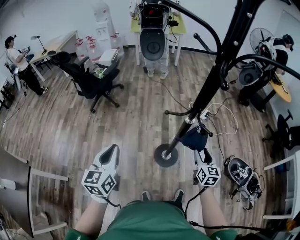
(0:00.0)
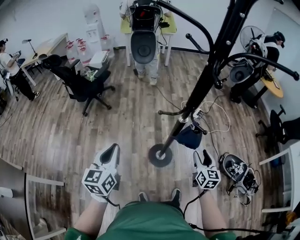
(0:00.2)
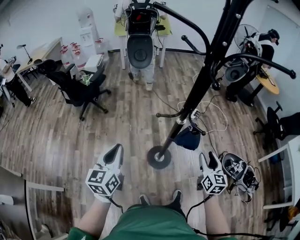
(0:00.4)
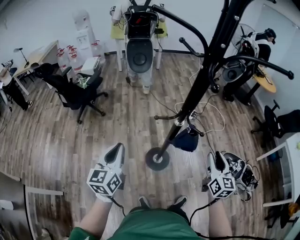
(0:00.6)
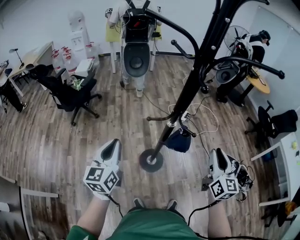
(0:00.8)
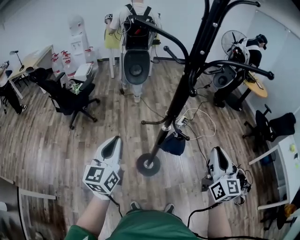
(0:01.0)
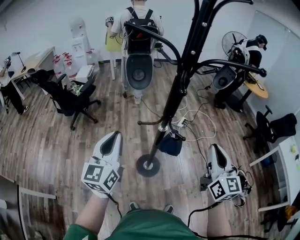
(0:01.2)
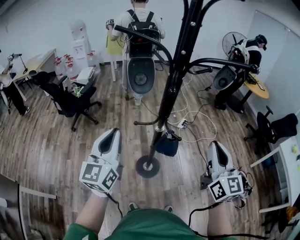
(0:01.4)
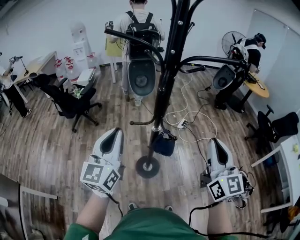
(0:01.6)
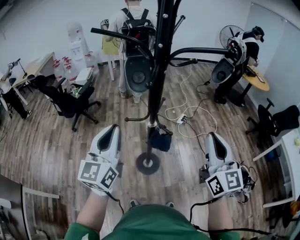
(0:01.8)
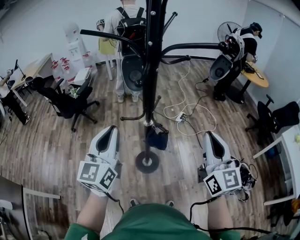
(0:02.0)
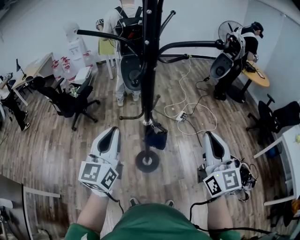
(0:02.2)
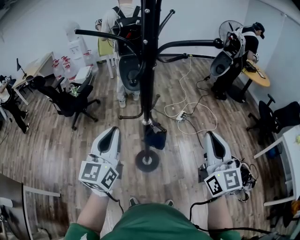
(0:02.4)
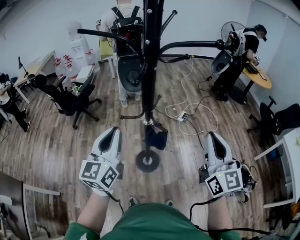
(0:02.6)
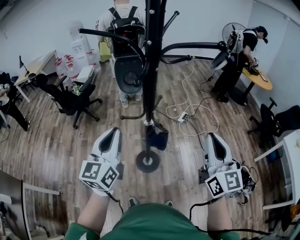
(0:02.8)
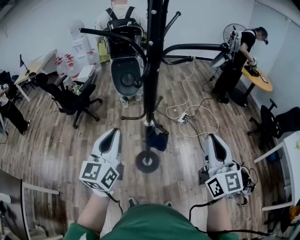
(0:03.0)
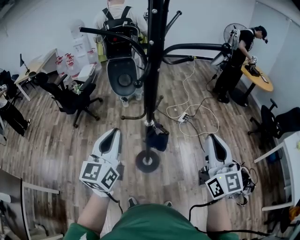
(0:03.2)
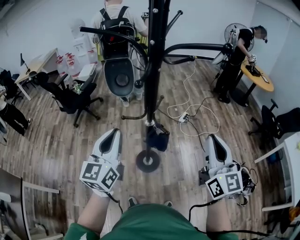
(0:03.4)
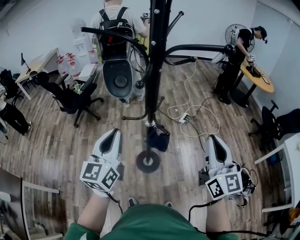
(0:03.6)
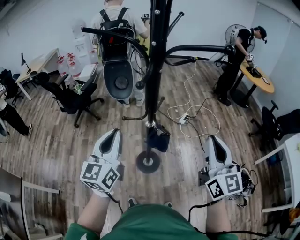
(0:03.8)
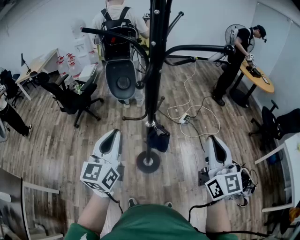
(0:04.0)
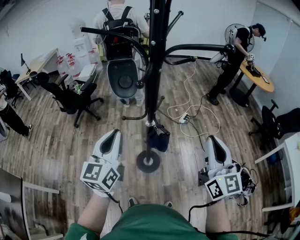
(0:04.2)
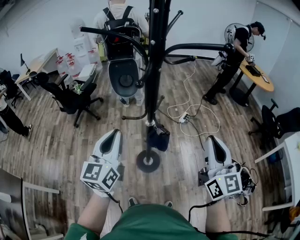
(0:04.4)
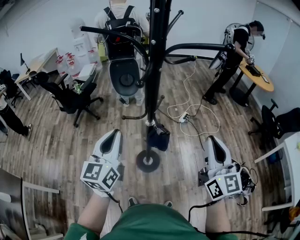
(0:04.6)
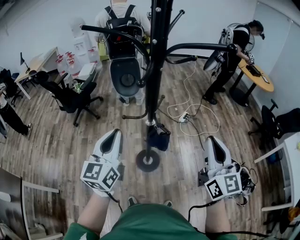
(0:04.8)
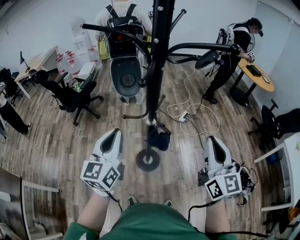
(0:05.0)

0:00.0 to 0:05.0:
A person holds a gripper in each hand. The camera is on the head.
0:00.0 to 0:01.6: The left gripper goes roughly 25 cm to the right and upward, and swivels about 20 degrees, while the right gripper goes approximately 35 cm upward, changes its angle by some 30 degrees, and closes up.
0:01.6 to 0:03.4: The left gripper ends up some 5 cm from where it was.
0:03.4 to 0:05.0: The grippers stay close to where they were, moving slightly.

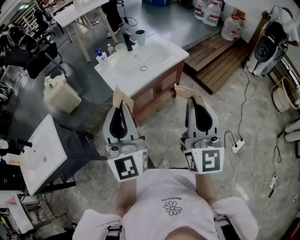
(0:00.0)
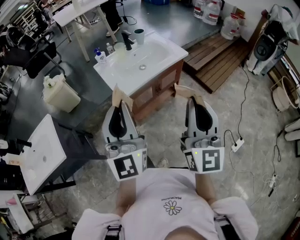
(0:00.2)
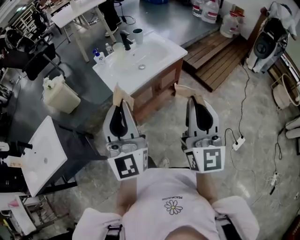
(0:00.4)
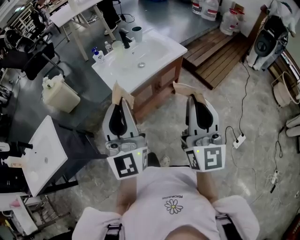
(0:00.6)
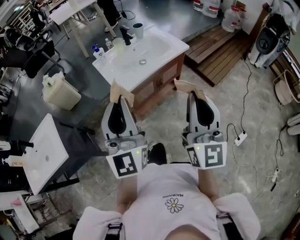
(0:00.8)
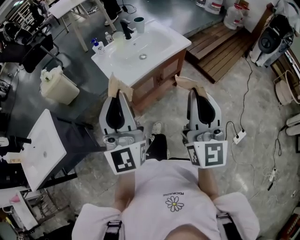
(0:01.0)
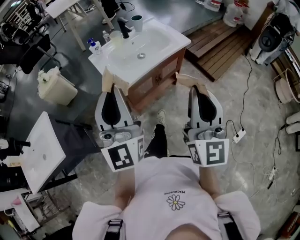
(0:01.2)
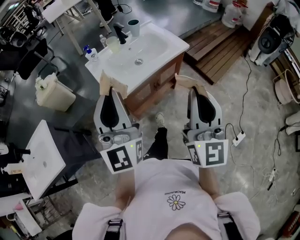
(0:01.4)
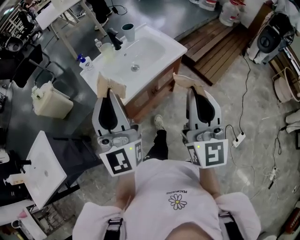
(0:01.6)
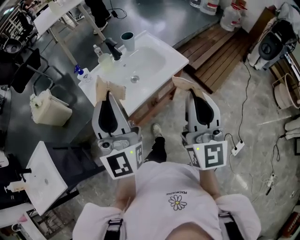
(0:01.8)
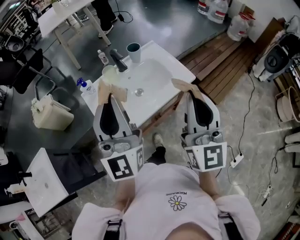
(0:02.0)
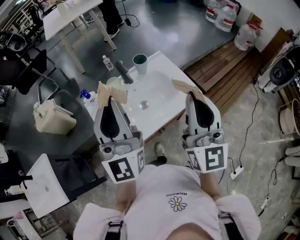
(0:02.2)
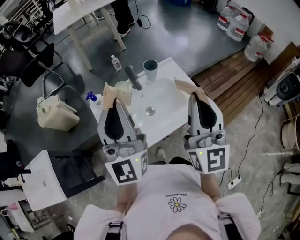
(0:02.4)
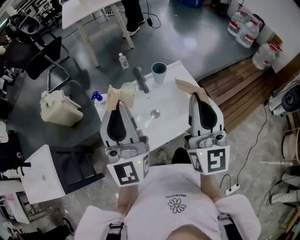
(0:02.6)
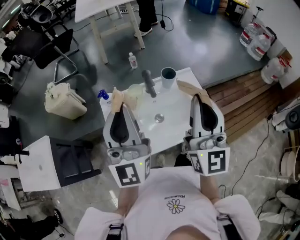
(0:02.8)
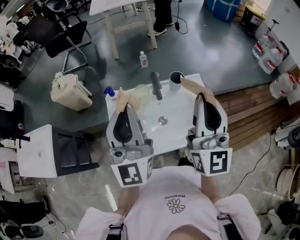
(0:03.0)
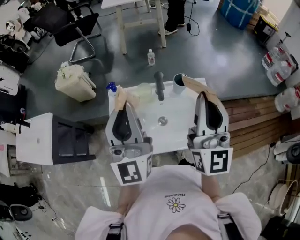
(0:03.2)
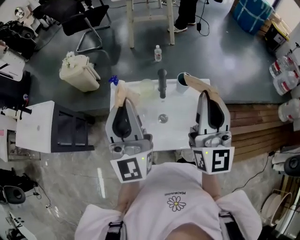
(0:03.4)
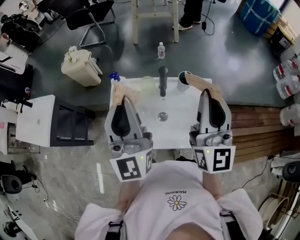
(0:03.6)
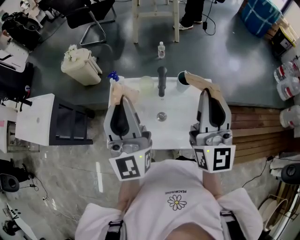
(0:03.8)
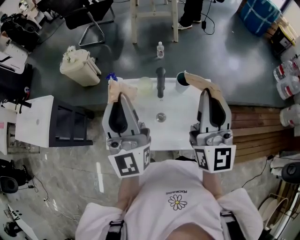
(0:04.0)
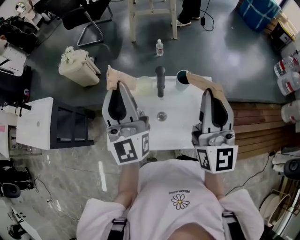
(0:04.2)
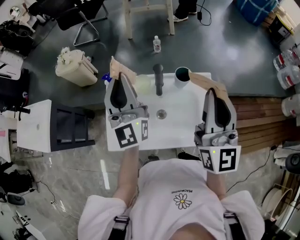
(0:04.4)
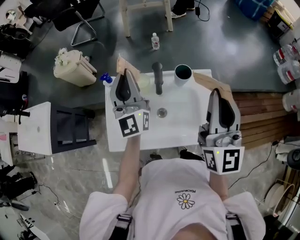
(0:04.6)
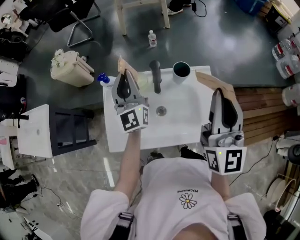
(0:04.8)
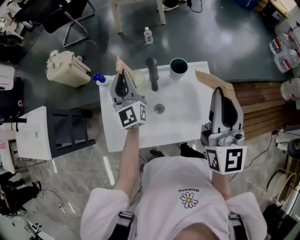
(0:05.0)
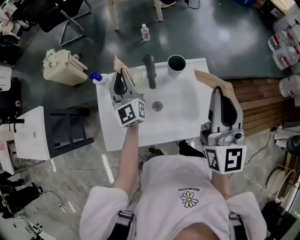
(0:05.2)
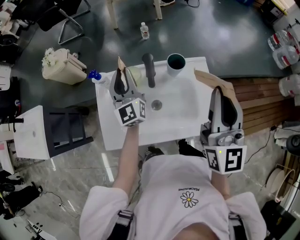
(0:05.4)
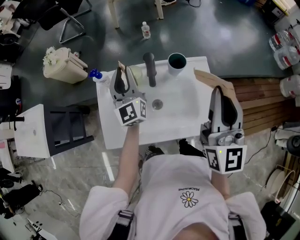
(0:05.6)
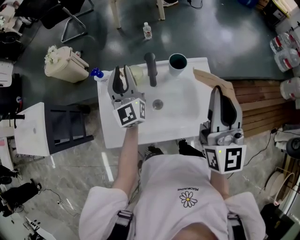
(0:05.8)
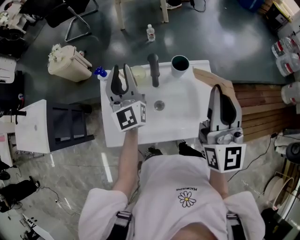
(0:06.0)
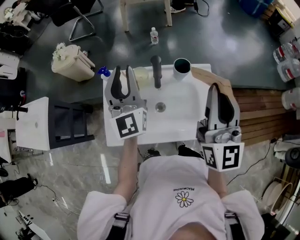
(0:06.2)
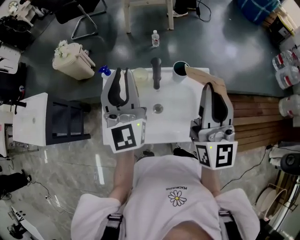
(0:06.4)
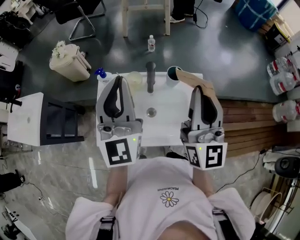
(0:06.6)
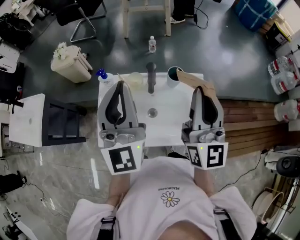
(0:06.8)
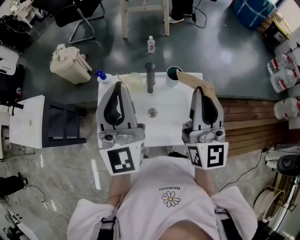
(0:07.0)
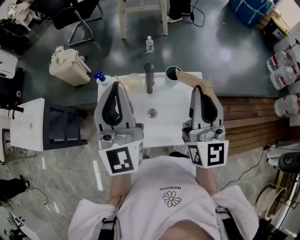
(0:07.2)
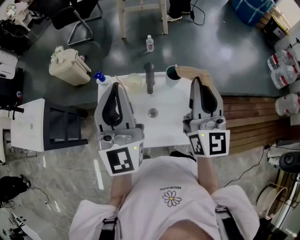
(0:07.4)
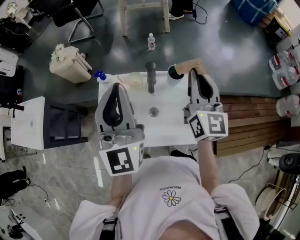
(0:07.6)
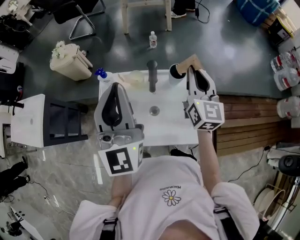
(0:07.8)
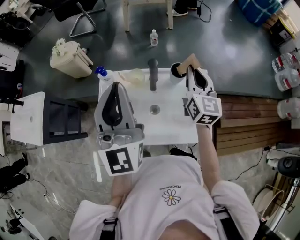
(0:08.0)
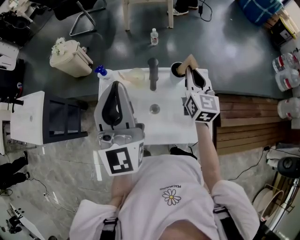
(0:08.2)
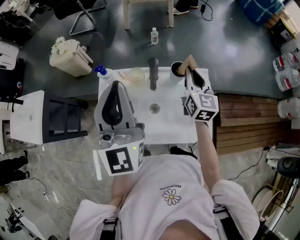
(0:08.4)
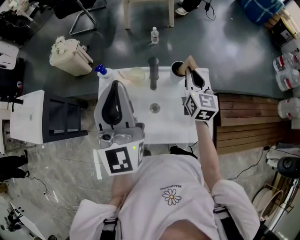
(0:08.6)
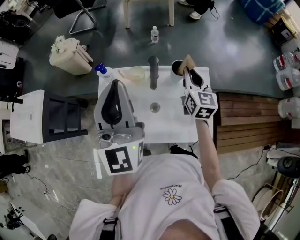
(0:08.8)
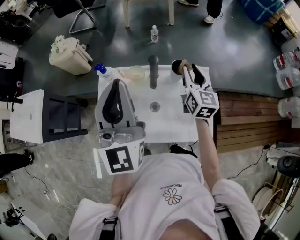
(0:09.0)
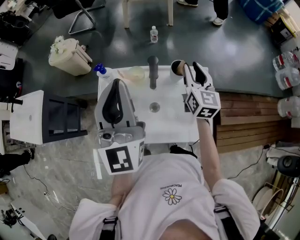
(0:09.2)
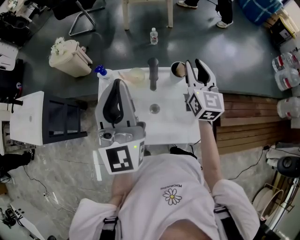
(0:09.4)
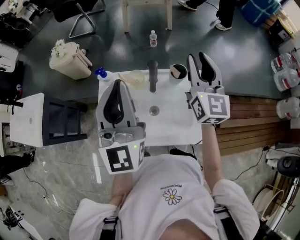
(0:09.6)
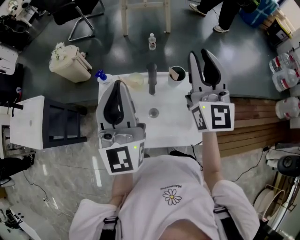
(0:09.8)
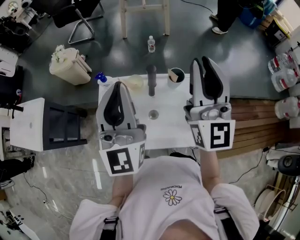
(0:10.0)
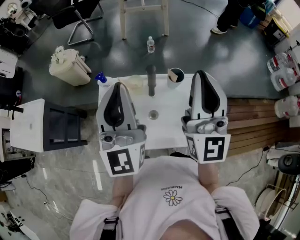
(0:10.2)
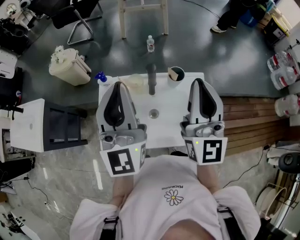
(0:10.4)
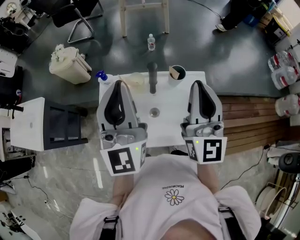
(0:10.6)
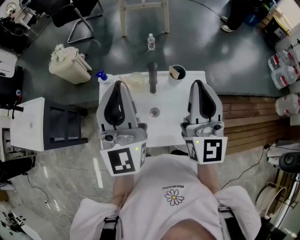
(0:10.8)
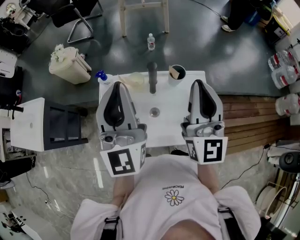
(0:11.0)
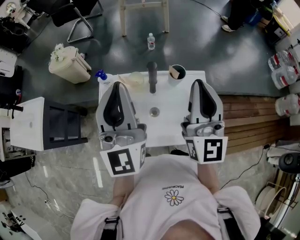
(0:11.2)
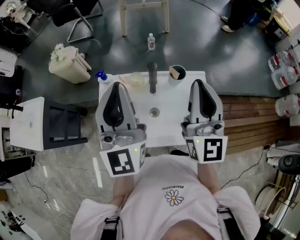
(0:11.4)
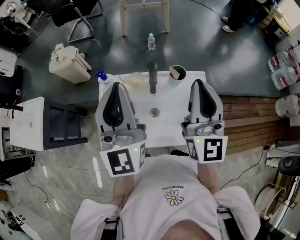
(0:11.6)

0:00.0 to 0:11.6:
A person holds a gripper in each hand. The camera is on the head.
0:00.0 to 0:01.4: The grippers both shift forward by about 10 cm.
0:01.4 to 0:02.8: The grippers both shift forward by approximately 35 cm. The right gripper turns by roughly 20 degrees.
0:02.8 to 0:04.4: The left gripper goes about 10 cm forward; the right gripper goes some 10 cm forward and to the right.
0:04.4 to 0:05.8: The left gripper shifts some 15 cm downward and forward.
0:05.8 to 0:07.2: The left gripper moves upward and backward, approximately 20 cm.
0:07.2 to 0:08.8: The right gripper is displaced downward and forward by about 25 cm, and rotates roughly 30 degrees.
0:08.8 to 0:10.2: The right gripper goes about 25 cm upward and backward, and tips its fingers upward by about 30 degrees.
0:10.2 to 0:11.6: The grippers make only small movements.

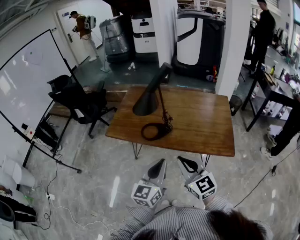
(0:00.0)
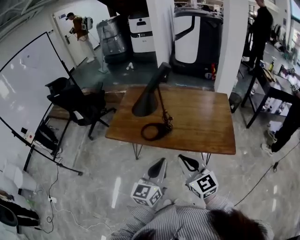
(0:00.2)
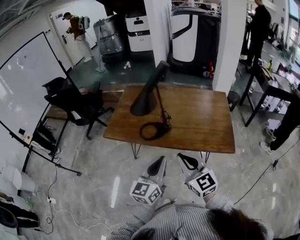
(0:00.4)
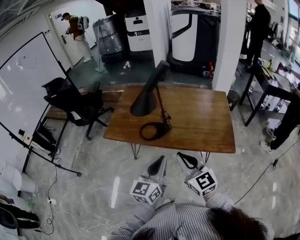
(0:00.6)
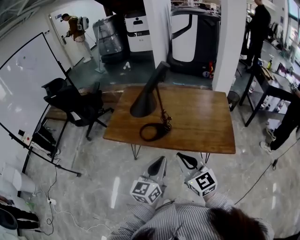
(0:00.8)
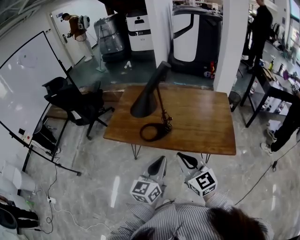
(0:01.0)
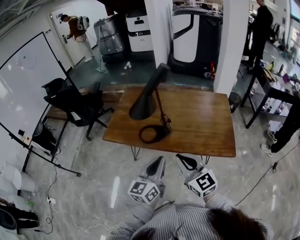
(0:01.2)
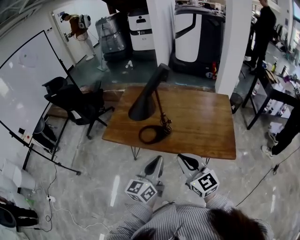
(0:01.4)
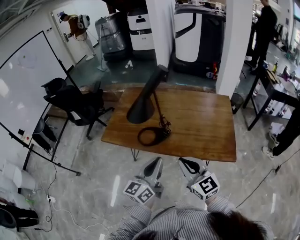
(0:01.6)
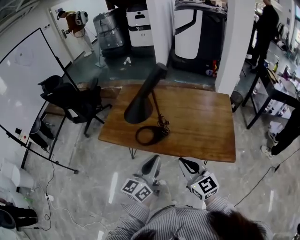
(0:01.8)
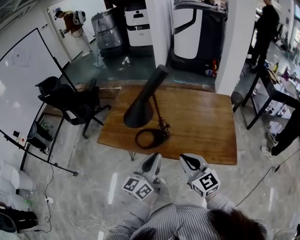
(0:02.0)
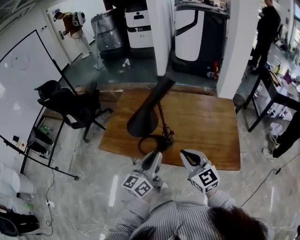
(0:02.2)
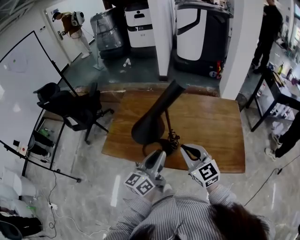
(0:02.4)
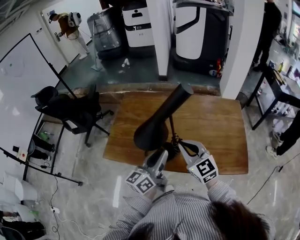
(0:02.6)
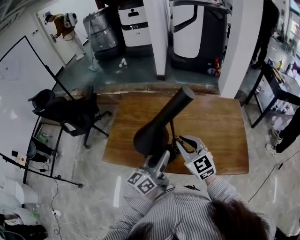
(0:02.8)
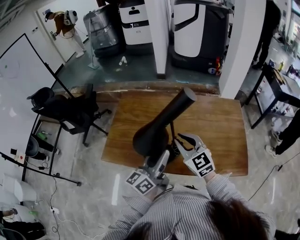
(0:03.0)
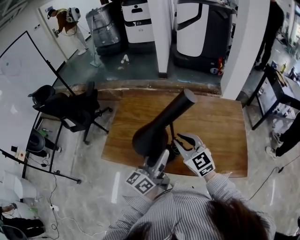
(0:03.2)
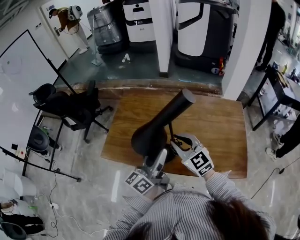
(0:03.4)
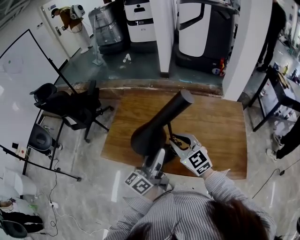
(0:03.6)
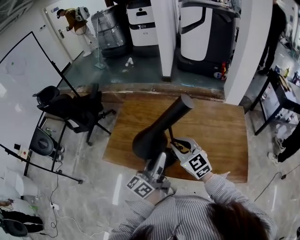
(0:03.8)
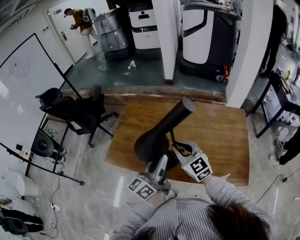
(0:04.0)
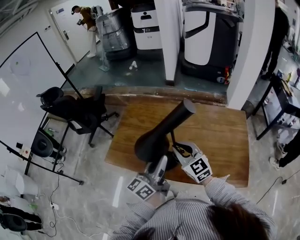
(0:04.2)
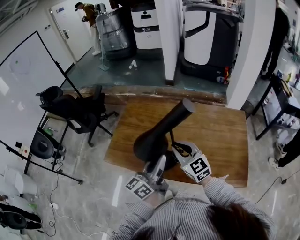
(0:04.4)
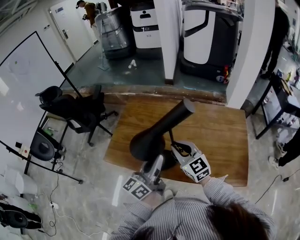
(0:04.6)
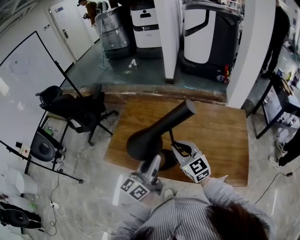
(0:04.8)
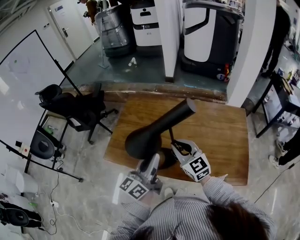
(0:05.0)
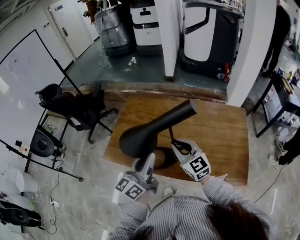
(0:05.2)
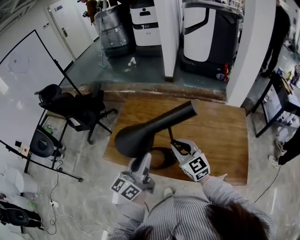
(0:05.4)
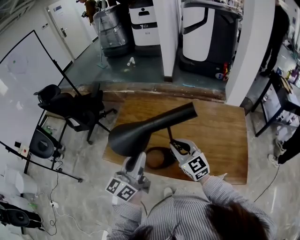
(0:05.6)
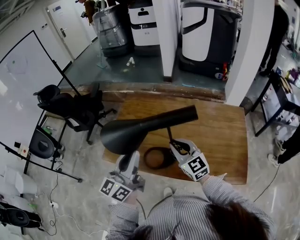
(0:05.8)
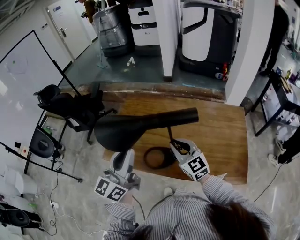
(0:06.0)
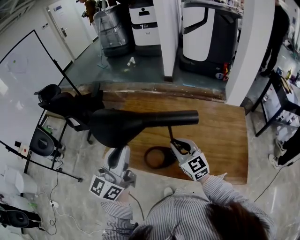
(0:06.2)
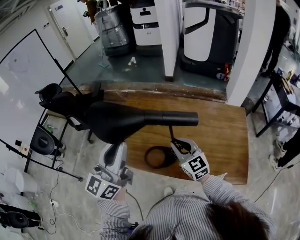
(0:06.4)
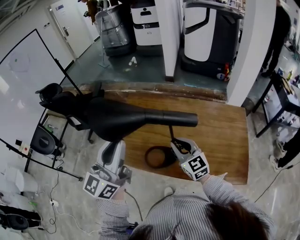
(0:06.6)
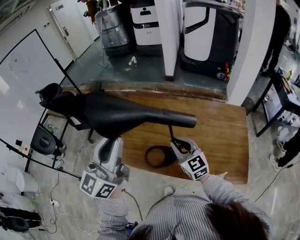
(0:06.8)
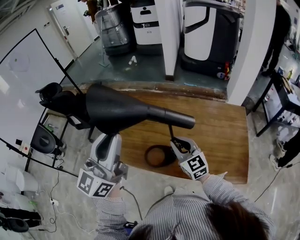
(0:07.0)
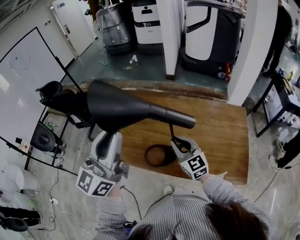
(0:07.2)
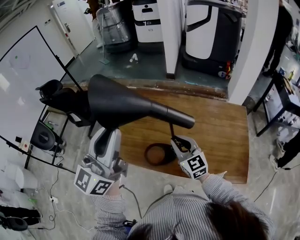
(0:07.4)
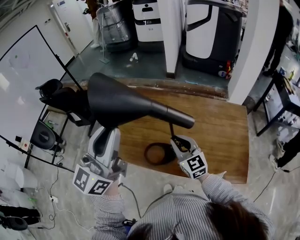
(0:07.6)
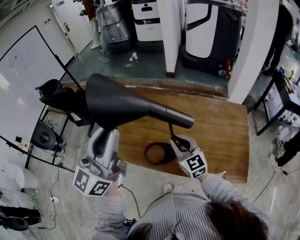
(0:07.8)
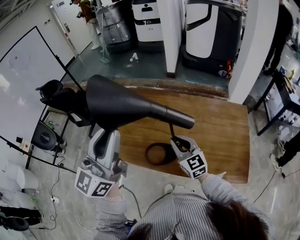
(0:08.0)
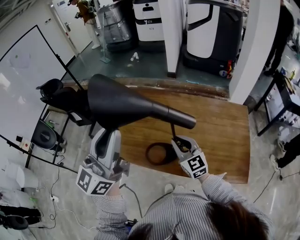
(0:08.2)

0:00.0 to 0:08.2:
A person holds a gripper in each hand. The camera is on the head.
0:00.0 to 0:01.6: Both grippers travel together forward, approximately 5 cm.
0:01.6 to 0:03.2: The grippers both shift forward by roughly 25 cm. The left gripper opens up.
0:03.2 to 0:05.0: The left gripper closes.
0:05.0 to 0:06.6: The left gripper moves upward and to the left, approximately 15 cm, and changes its angle by approximately 30 degrees.
0:06.6 to 0:08.2: The left gripper is displaced upward by some 5 cm.
